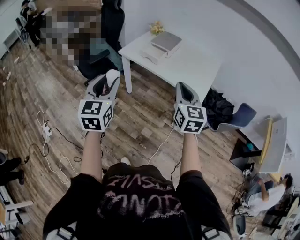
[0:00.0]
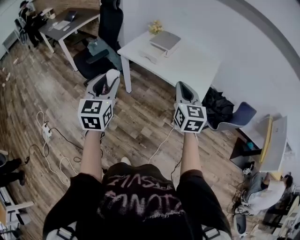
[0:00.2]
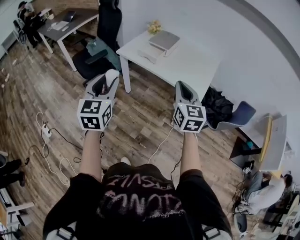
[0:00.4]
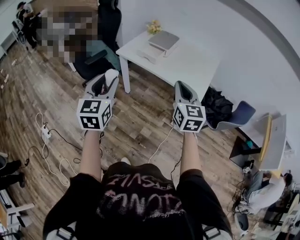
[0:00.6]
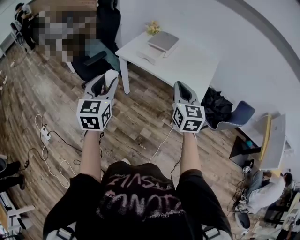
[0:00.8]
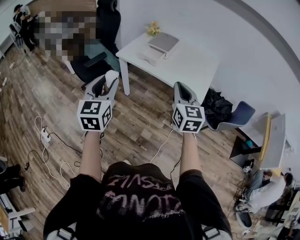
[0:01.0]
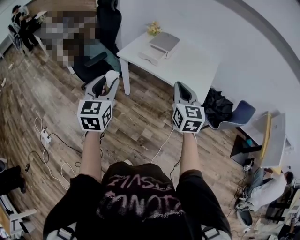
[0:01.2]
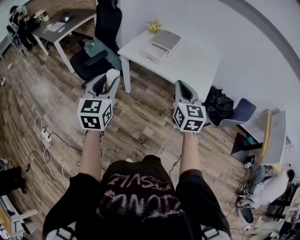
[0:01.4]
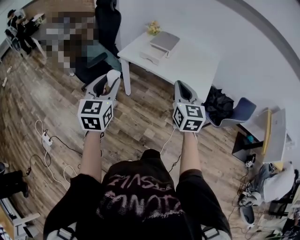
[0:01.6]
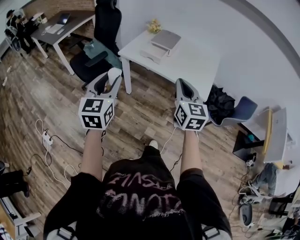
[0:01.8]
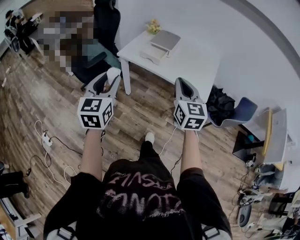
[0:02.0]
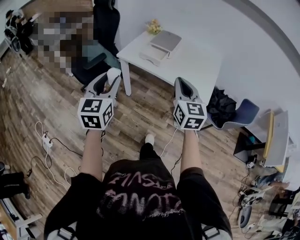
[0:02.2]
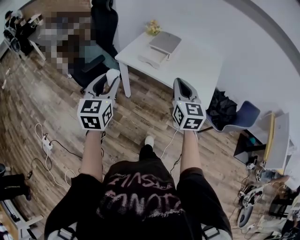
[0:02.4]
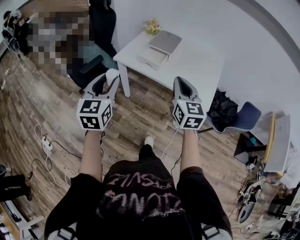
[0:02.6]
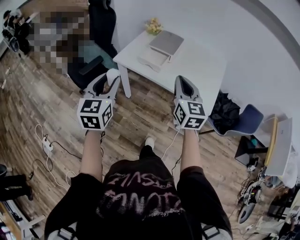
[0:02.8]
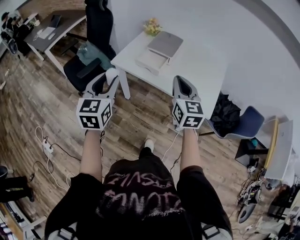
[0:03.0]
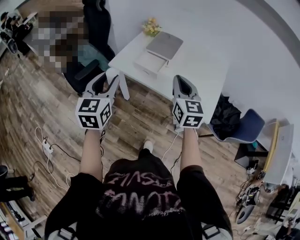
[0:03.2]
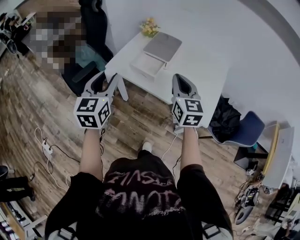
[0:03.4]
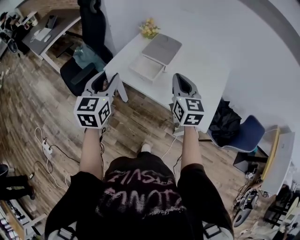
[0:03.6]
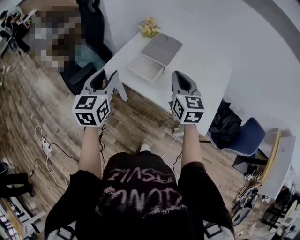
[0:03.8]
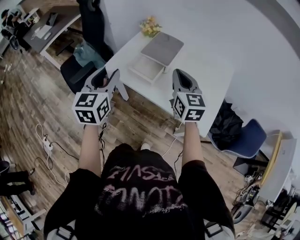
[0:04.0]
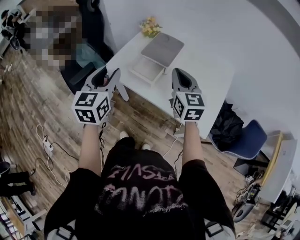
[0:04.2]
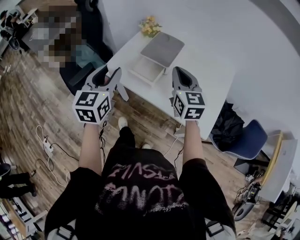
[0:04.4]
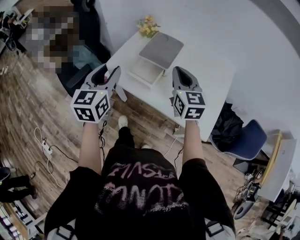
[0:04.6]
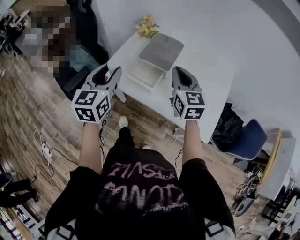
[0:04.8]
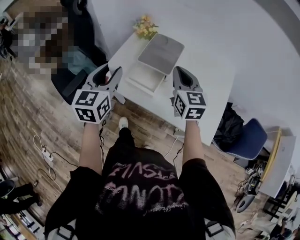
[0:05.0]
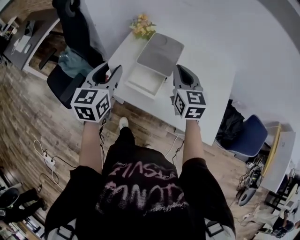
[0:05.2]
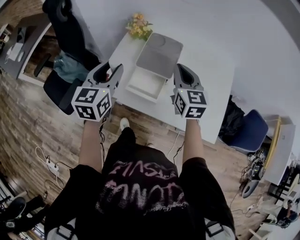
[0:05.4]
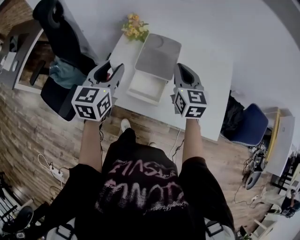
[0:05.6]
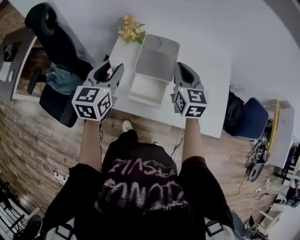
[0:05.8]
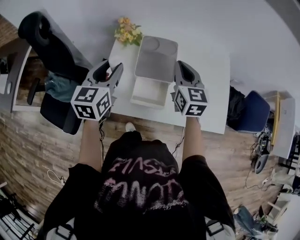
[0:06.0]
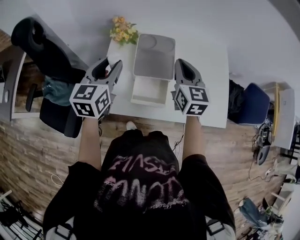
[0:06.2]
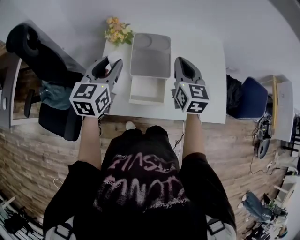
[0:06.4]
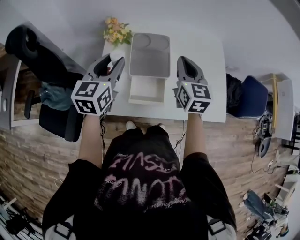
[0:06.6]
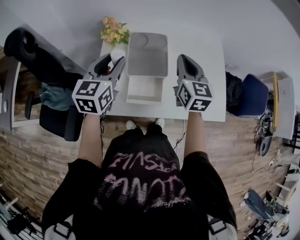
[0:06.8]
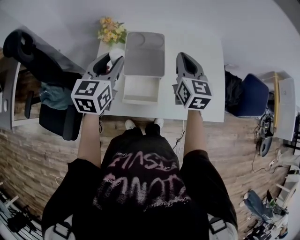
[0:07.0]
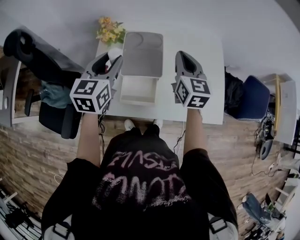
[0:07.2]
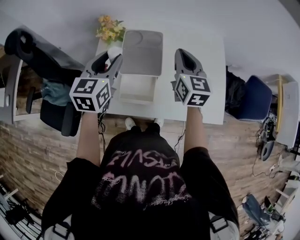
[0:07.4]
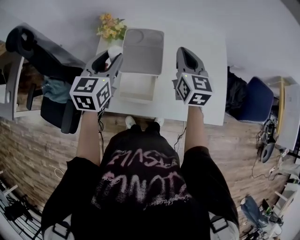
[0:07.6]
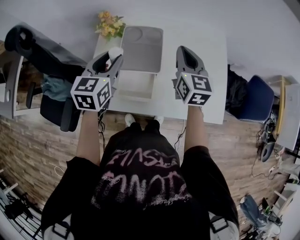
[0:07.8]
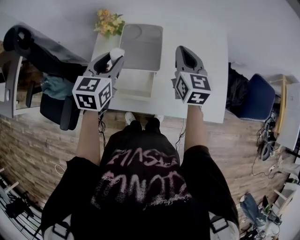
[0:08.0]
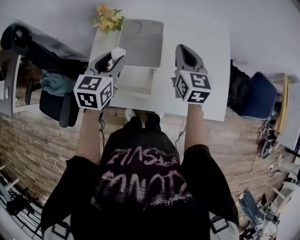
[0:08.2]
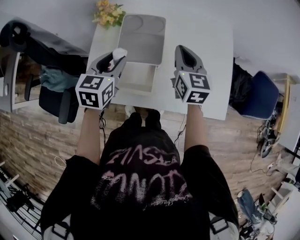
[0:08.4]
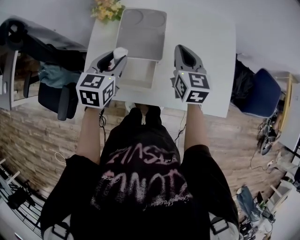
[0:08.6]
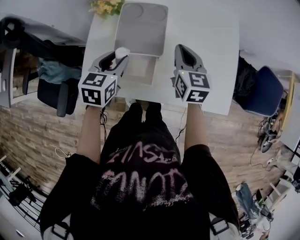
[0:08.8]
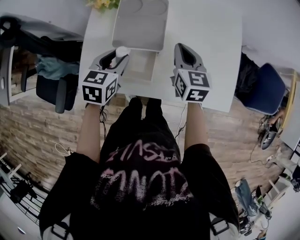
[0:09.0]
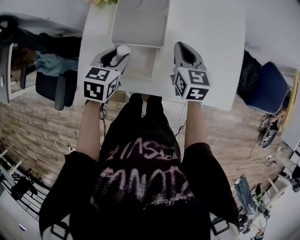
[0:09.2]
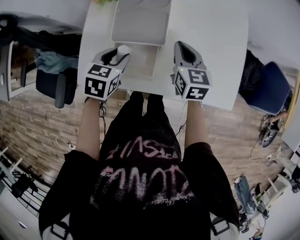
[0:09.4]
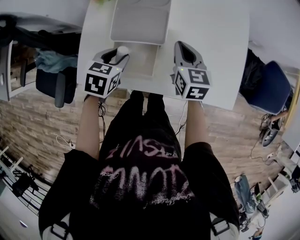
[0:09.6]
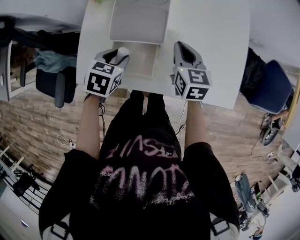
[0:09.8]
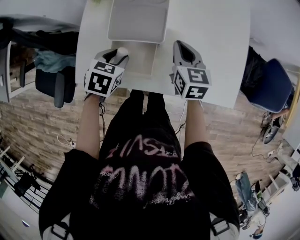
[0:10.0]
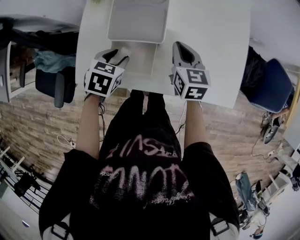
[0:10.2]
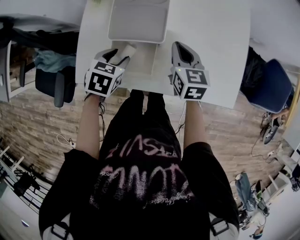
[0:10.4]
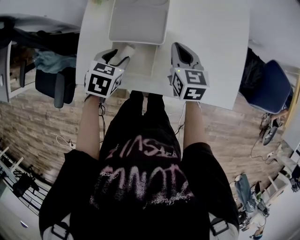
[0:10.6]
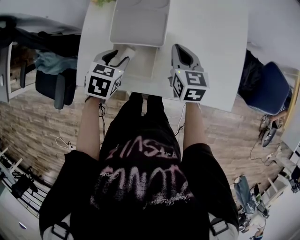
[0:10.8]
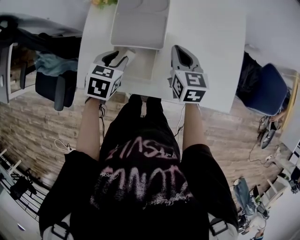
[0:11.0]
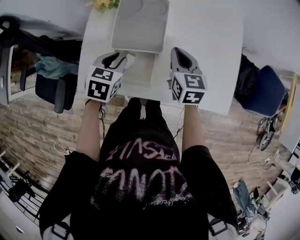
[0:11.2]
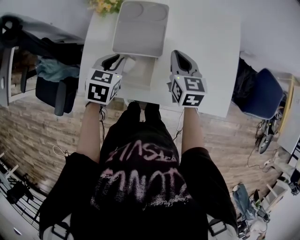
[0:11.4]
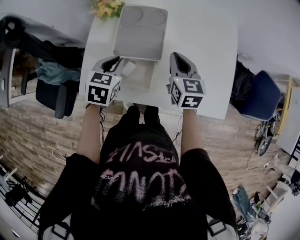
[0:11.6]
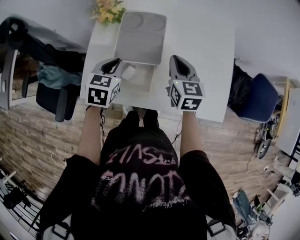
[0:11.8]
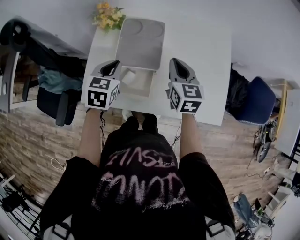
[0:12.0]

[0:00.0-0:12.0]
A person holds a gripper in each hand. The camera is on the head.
0:00.0 to 0:01.6: The right gripper travels to the left by about 5 cm, while the left gripper shifts by some 5 cm.
0:01.6 to 0:03.0: Both grippers move forward, about 20 cm.
0:03.0 to 0:04.4: The right gripper goes approximately 15 cm forward, while the left gripper heads forward and to the right, covering some 15 cm.
0:04.4 to 0:06.0: The left gripper shifts by about 25 cm, and changes its angle by roughly 30 degrees; the right gripper moves approximately 15 cm, and rotates roughly 30 degrees.
0:06.0 to 0:07.6: The grippers both shift to the right by some 10 cm.
0:07.6 to 0:09.0: The grippers both shift downward by approximately 15 cm. The left gripper swivels about 20 degrees.
0:09.0 to 0:10.4: The right gripper changes place by roughly 5 cm. Meanwhile the left gripper travels downward by about 5 cm, and swivels roughly 20 degrees.
0:10.4 to 0:12.0: Both grippers move upward, about 10 cm. The left gripper changes its angle by about 20 degrees, and closes.

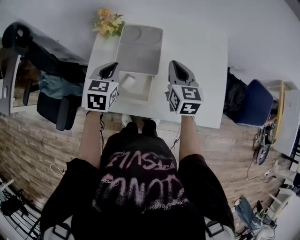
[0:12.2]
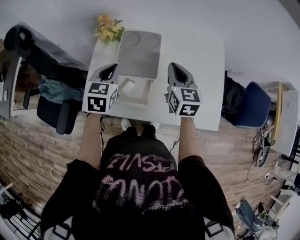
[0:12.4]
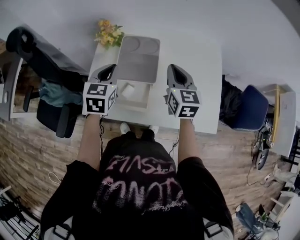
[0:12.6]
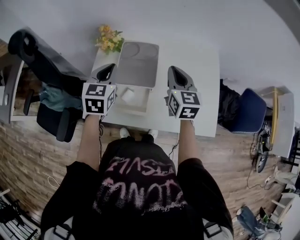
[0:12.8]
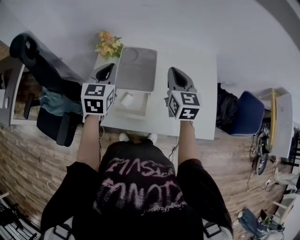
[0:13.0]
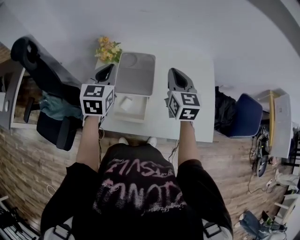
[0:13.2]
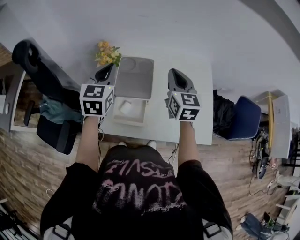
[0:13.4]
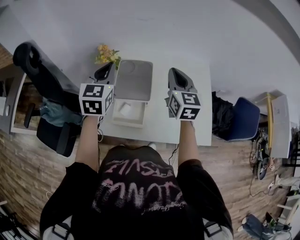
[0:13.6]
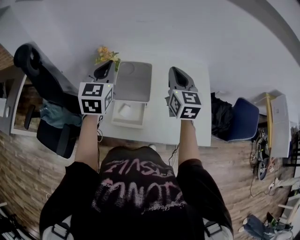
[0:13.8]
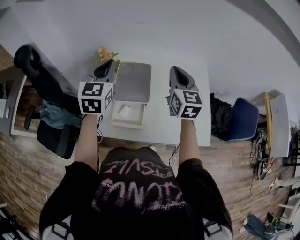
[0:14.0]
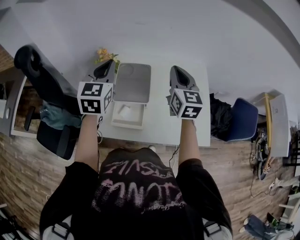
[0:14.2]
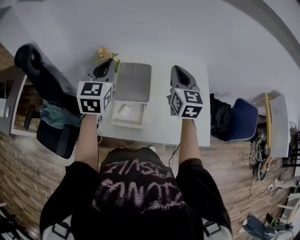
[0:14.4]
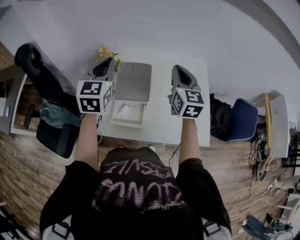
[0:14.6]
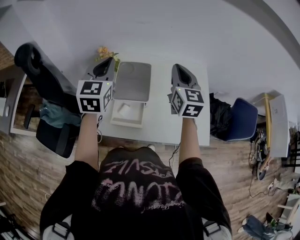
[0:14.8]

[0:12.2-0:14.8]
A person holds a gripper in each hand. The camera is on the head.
0:12.2 to 0:13.4: The two grippers go some 10 cm upward. The left gripper turns by approximately 20 degrees.
0:13.4 to 0:14.8: Both grippers move upward, approximately 5 cm.

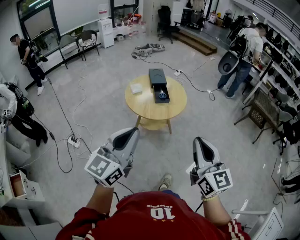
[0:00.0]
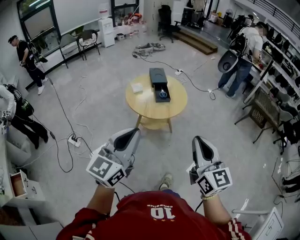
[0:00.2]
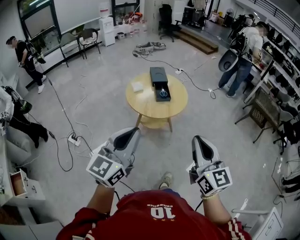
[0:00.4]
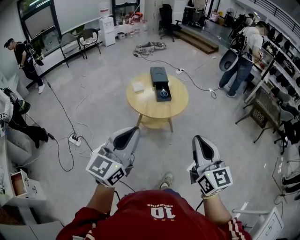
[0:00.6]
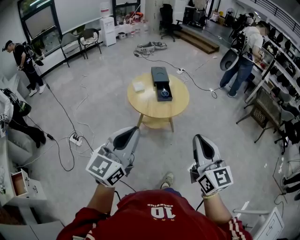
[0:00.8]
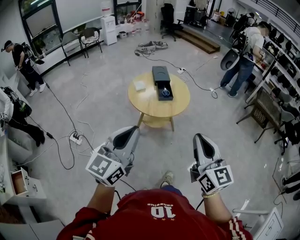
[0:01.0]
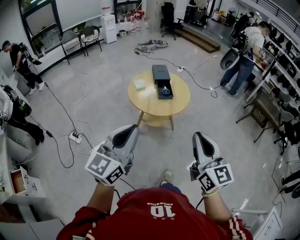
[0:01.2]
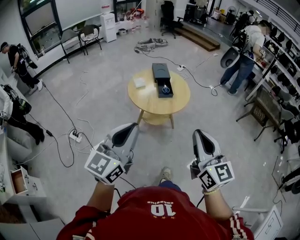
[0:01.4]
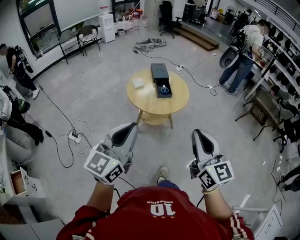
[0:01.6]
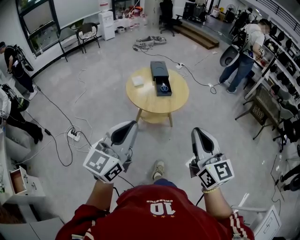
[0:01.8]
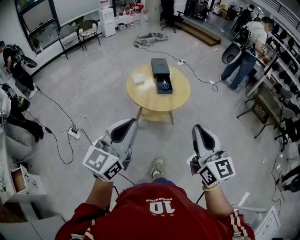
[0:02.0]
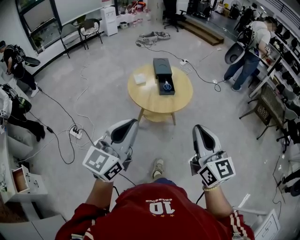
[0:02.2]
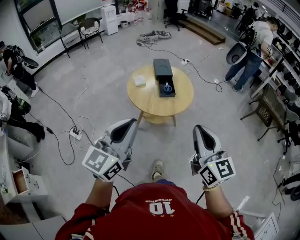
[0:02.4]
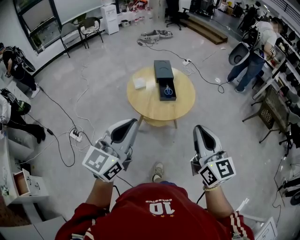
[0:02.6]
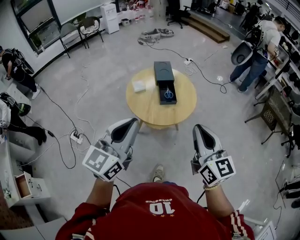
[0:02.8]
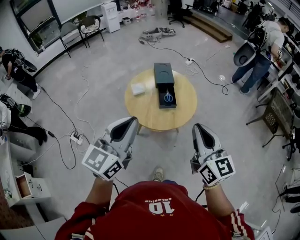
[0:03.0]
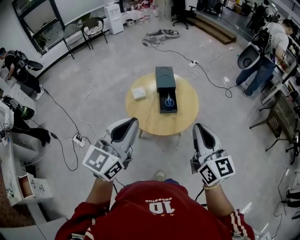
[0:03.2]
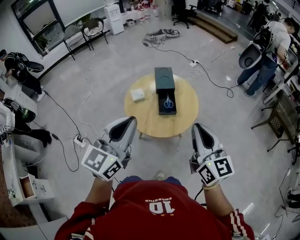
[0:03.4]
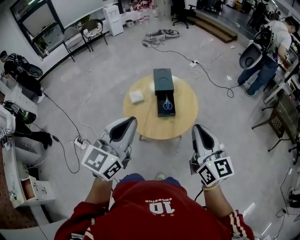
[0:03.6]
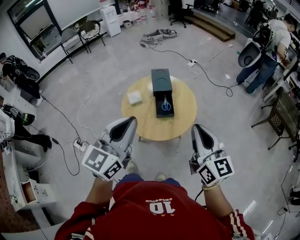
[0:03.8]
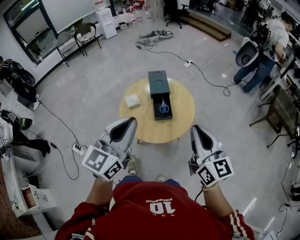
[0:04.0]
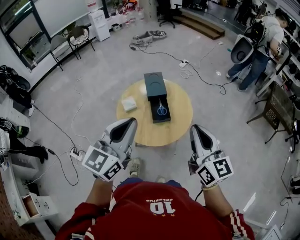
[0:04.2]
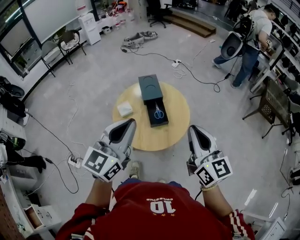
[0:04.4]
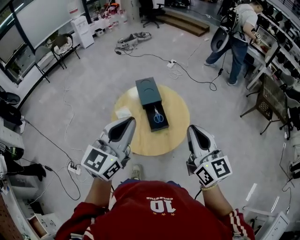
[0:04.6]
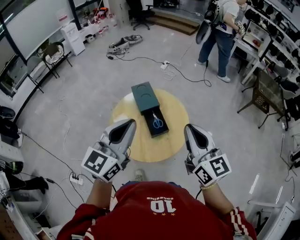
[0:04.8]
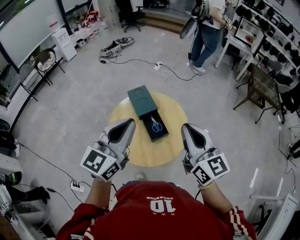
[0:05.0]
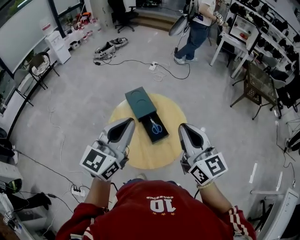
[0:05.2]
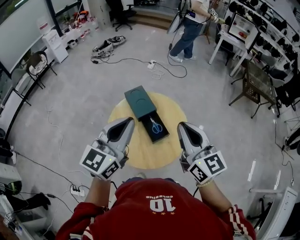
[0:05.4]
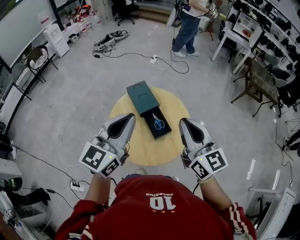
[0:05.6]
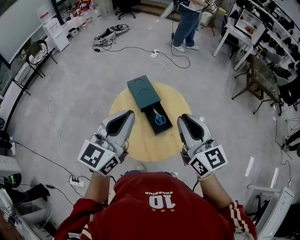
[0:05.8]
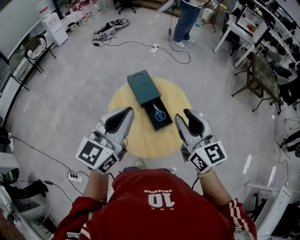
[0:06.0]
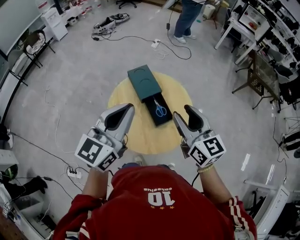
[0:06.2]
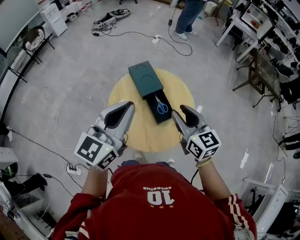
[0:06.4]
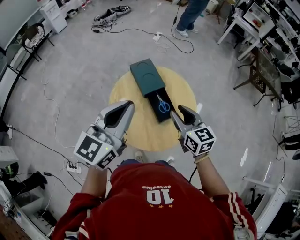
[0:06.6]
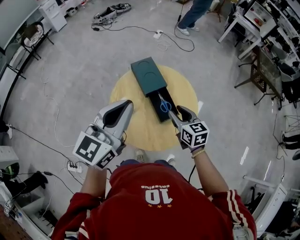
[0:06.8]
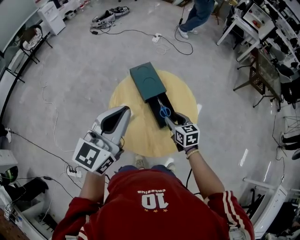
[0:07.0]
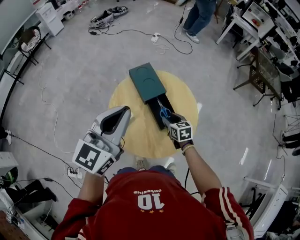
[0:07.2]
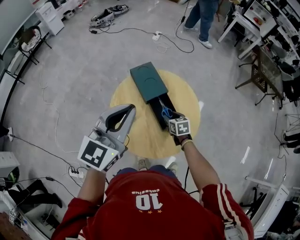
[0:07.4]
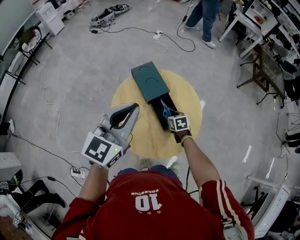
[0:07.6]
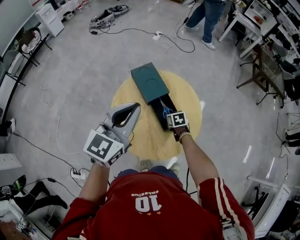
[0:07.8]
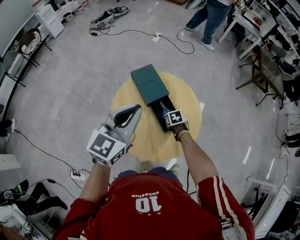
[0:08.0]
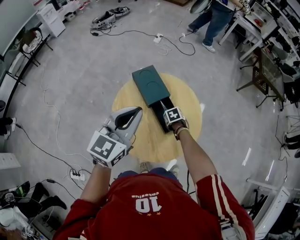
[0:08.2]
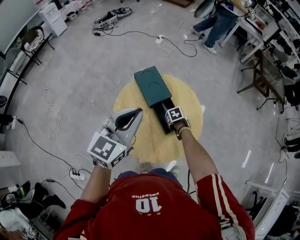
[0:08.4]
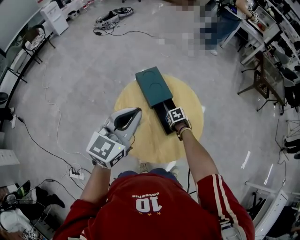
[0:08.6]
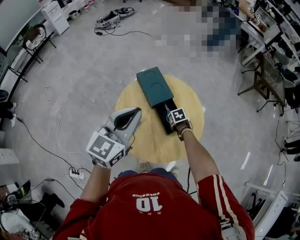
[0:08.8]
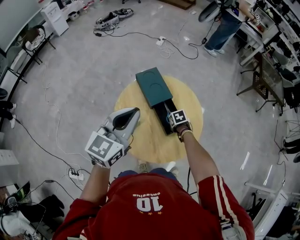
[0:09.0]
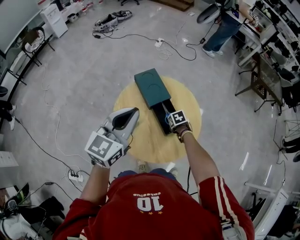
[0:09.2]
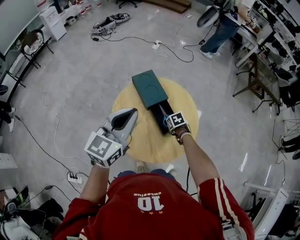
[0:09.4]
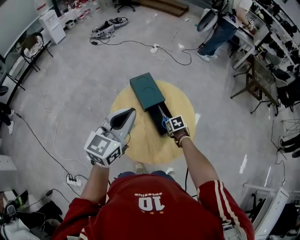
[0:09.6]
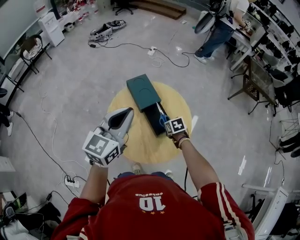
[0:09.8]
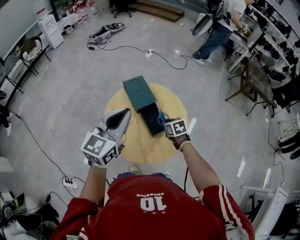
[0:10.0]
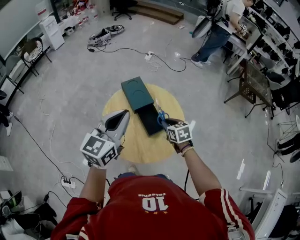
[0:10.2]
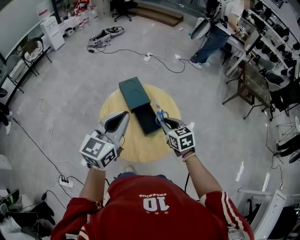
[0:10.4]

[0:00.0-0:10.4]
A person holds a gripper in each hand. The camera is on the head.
0:00.0 to 0:01.4: The grippers stay close to where they were, moving slightly.
0:01.4 to 0:03.0: The two grippers go roughly 25 cm forward.
0:03.0 to 0:04.4: Both grippers move forward, about 10 cm.
0:04.4 to 0:06.0: The right gripper moves to the left and forward, about 15 cm, and opens its fingers. The left gripper heads forward and to the left, covering roughly 15 cm.
0:06.0 to 0:07.4: The right gripper shifts roughly 40 cm downward, and tilts its fingers roughly 50 degrees downward; the left gripper heads forward, covering some 5 cm.
0:07.4 to 0:09.0: The right gripper travels downward by some 5 cm, changes its angle by about 30 degrees, and closes.
0:09.0 to 0:10.4: The left gripper shifts by about 10 cm. The right gripper goes about 25 cm upward, and points its fingers some 40 degrees further upward.
